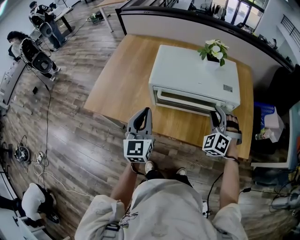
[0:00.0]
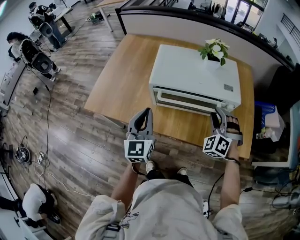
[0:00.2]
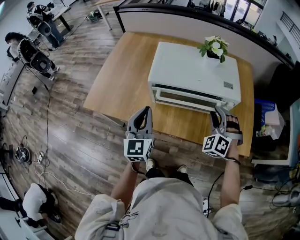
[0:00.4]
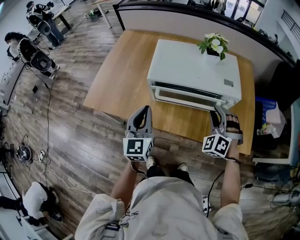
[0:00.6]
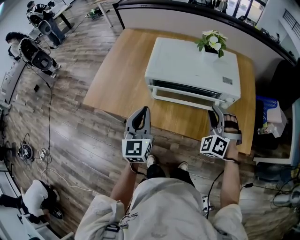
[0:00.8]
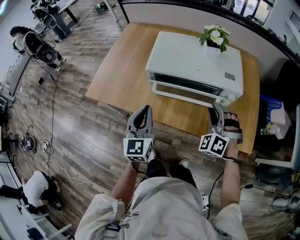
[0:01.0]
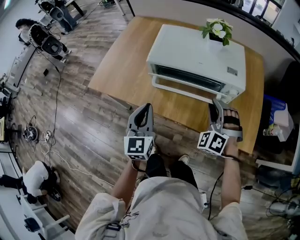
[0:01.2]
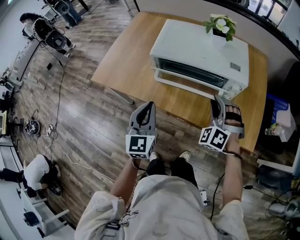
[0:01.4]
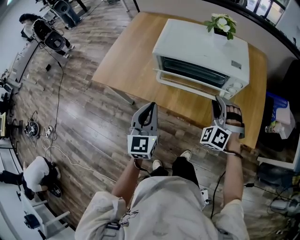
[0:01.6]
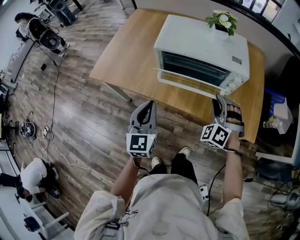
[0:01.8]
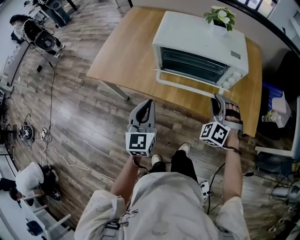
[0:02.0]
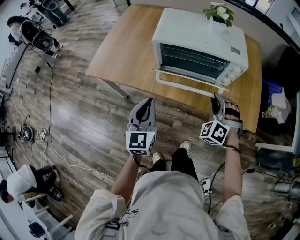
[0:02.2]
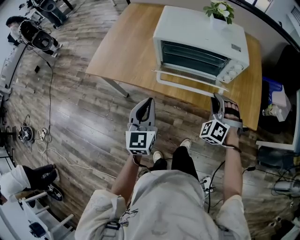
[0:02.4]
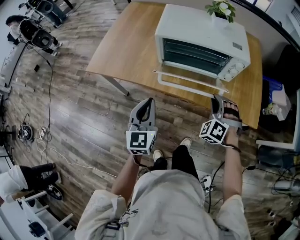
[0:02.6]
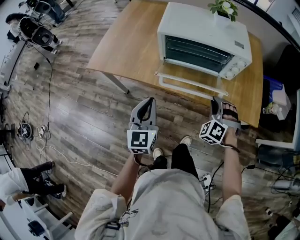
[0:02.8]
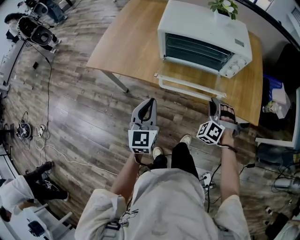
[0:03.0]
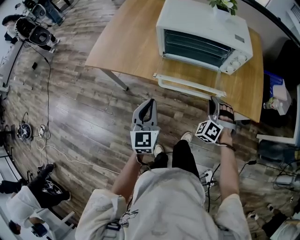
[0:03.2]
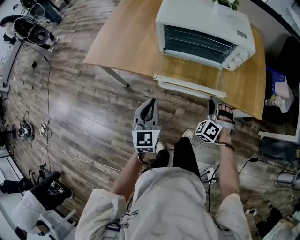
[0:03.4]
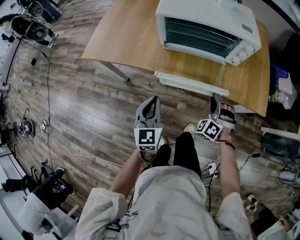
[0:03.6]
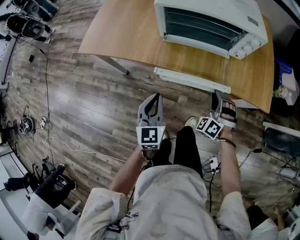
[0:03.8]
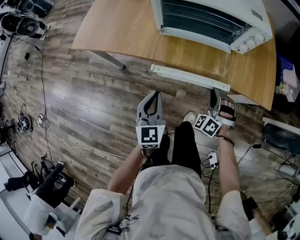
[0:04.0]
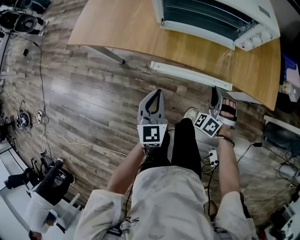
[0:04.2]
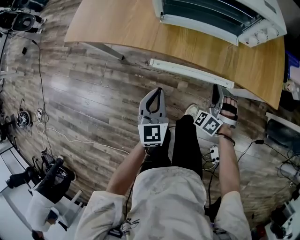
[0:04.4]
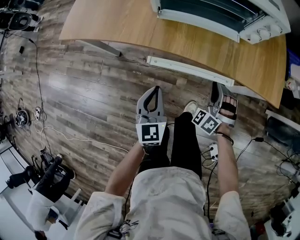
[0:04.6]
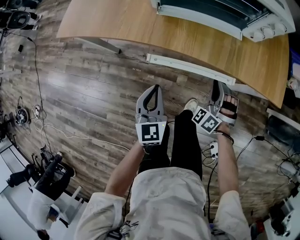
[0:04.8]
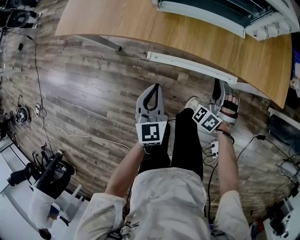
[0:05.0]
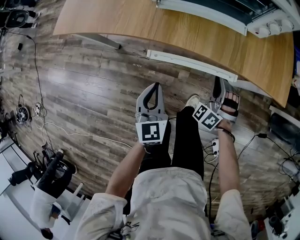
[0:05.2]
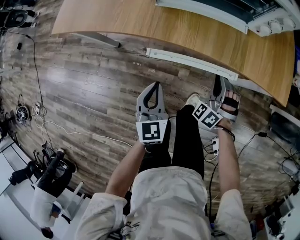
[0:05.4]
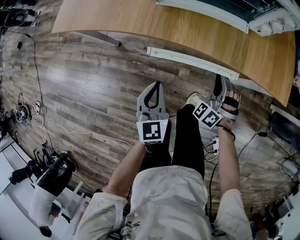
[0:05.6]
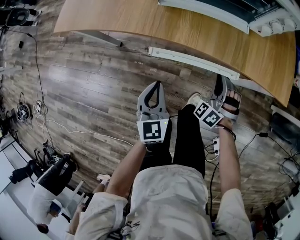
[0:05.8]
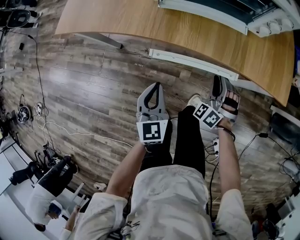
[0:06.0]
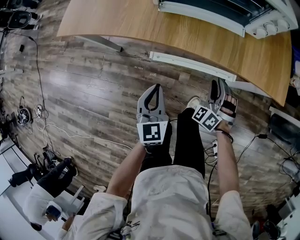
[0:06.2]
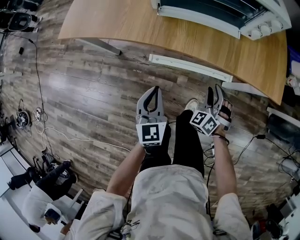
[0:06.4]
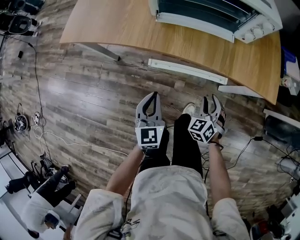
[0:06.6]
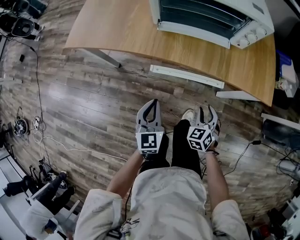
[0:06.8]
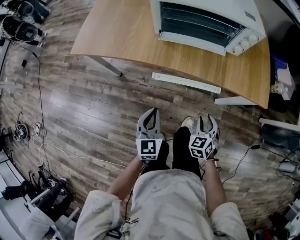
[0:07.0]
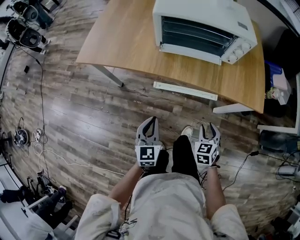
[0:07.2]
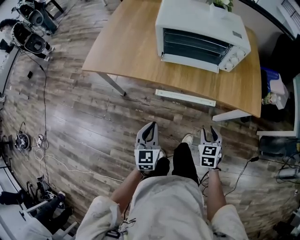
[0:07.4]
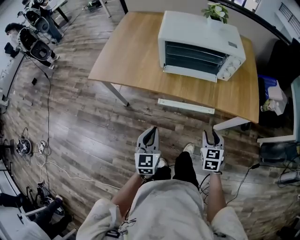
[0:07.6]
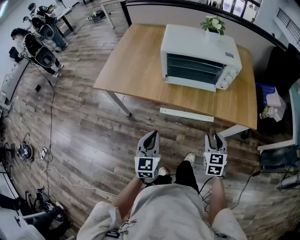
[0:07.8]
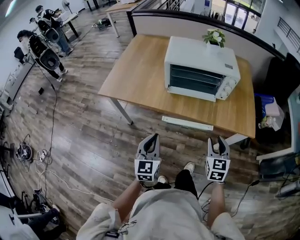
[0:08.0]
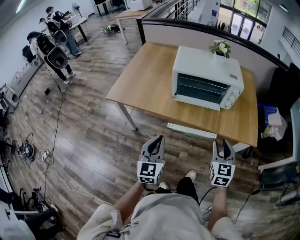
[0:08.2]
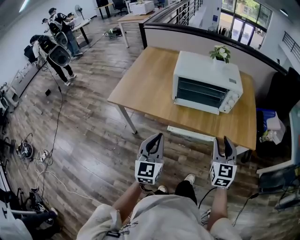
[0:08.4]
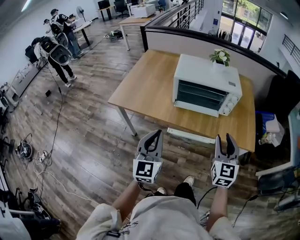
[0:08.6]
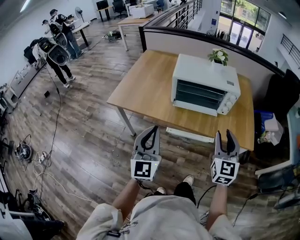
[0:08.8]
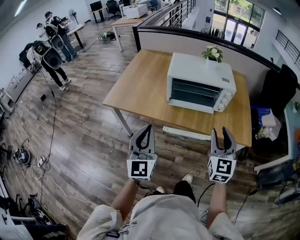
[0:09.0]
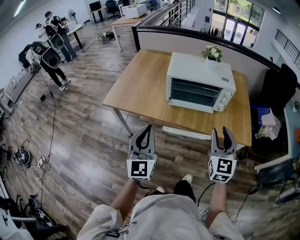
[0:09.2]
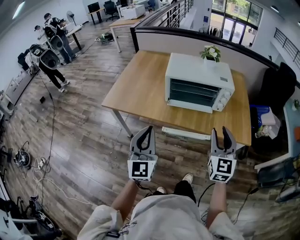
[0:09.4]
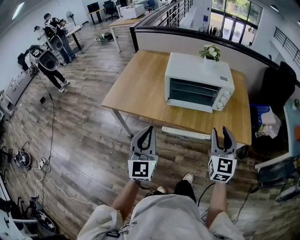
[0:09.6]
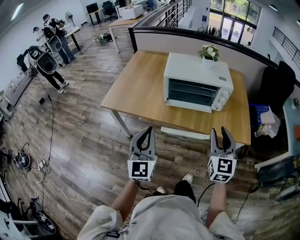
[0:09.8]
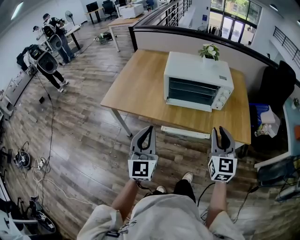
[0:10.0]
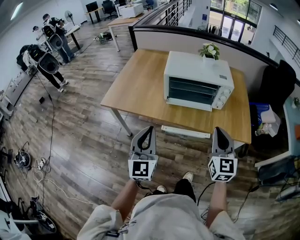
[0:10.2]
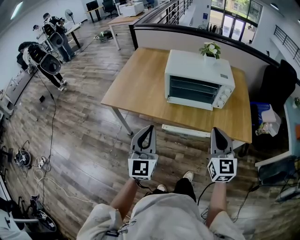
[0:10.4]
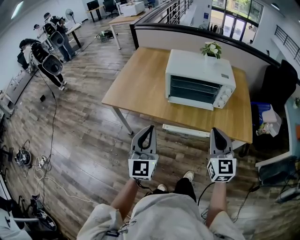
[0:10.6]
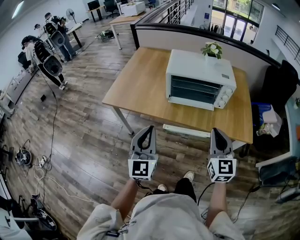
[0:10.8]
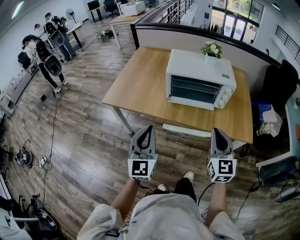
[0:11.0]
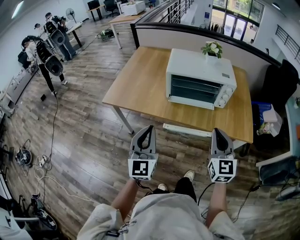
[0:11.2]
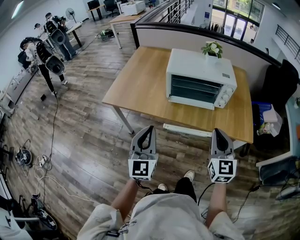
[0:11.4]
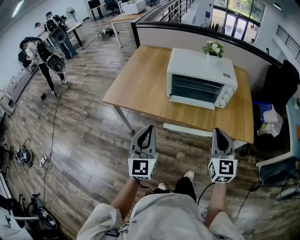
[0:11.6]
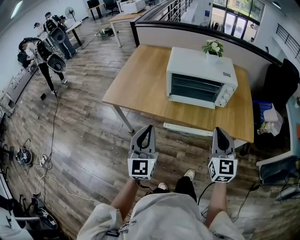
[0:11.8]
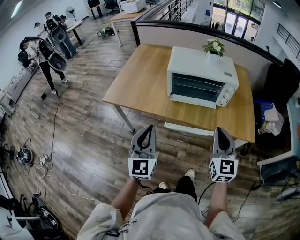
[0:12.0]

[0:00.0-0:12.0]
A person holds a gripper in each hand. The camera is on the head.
0:00.0 to 0:01.6: The two grippers go some 10 cm backward.
0:01.6 to 0:03.0: The right gripper is displaced downward and backward by about 15 cm. Meanwhile the left gripper goes some 10 cm backward and downward.
0:03.0 to 0:04.4: Both grippers move downward, approximately 10 cm.
0:04.4 to 0:06.0: The grippers move only a little.
0:06.0 to 0:07.6: The right gripper heads upward and backward, covering some 15 cm, and twists approximately 50 degrees clockwise, seen from behind. Meanwhile the left gripper heads upward, covering some 10 cm.
0:07.6 to 0:09.0: The grippers both shift upward by about 25 cm. The right gripper angles its fingers upward, by some 30 degrees. The left gripper turns by roughly 30 degrees.
0:09.0 to 0:10.4: The right gripper closes its fingers.
0:10.4 to 0:12.0: There are only small adjustments of the grippers.

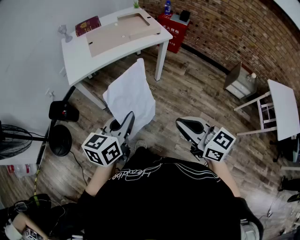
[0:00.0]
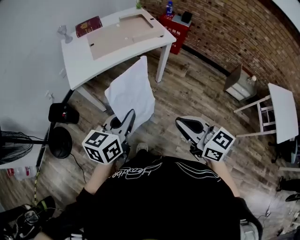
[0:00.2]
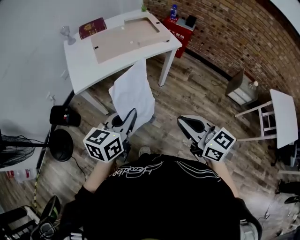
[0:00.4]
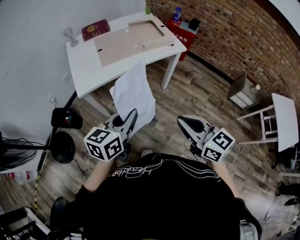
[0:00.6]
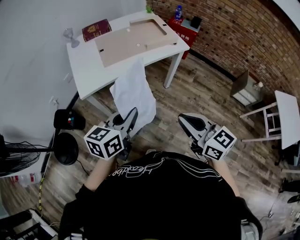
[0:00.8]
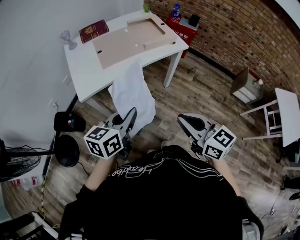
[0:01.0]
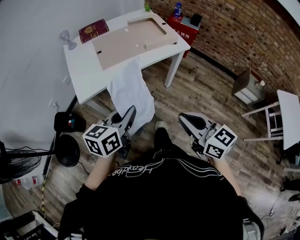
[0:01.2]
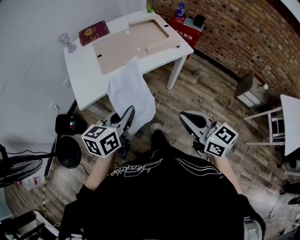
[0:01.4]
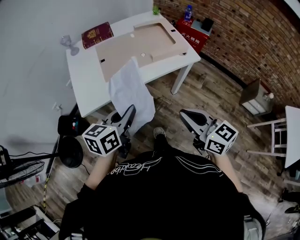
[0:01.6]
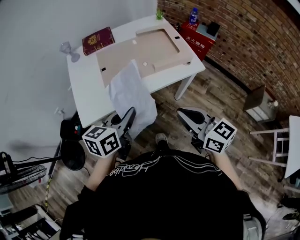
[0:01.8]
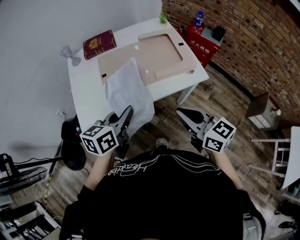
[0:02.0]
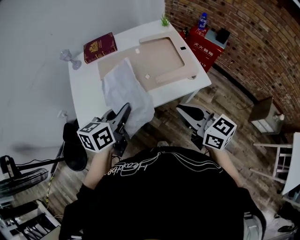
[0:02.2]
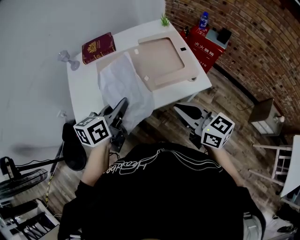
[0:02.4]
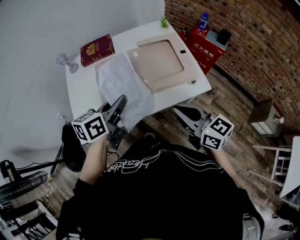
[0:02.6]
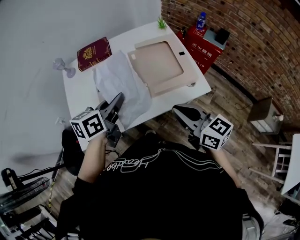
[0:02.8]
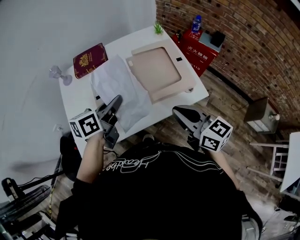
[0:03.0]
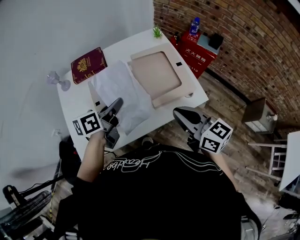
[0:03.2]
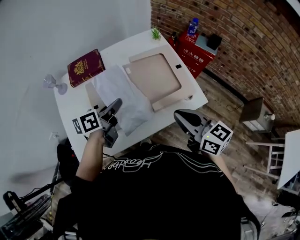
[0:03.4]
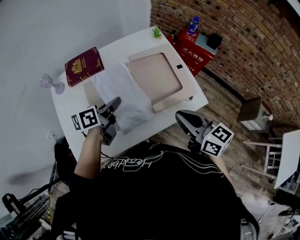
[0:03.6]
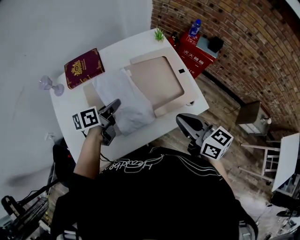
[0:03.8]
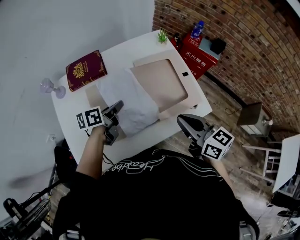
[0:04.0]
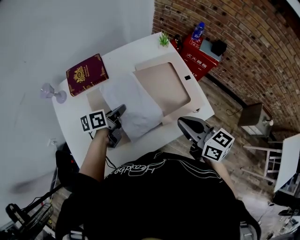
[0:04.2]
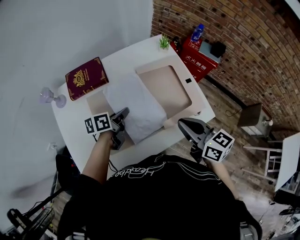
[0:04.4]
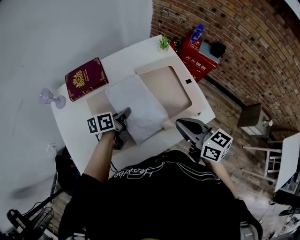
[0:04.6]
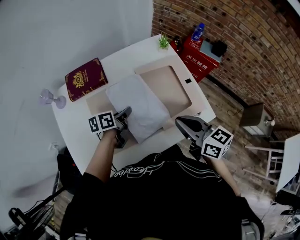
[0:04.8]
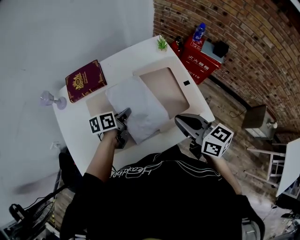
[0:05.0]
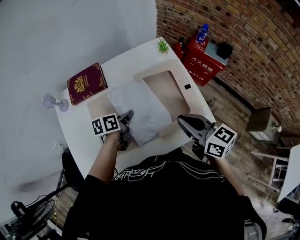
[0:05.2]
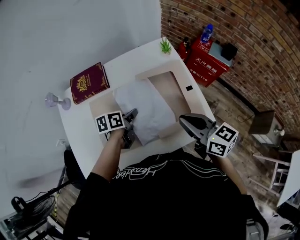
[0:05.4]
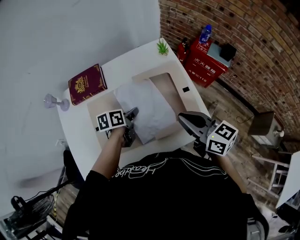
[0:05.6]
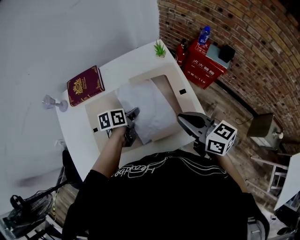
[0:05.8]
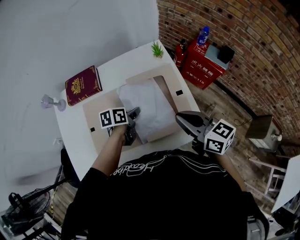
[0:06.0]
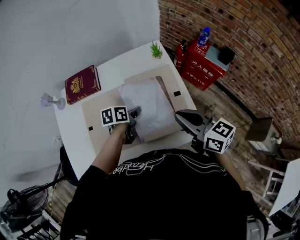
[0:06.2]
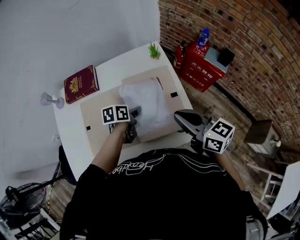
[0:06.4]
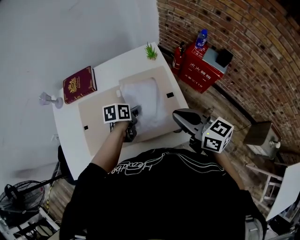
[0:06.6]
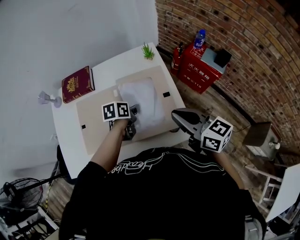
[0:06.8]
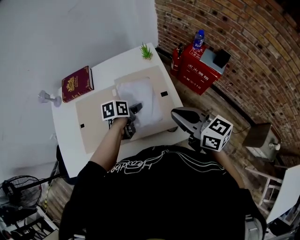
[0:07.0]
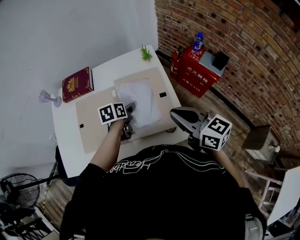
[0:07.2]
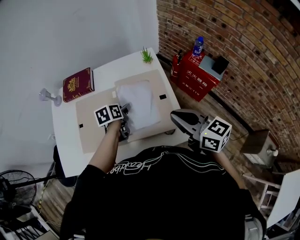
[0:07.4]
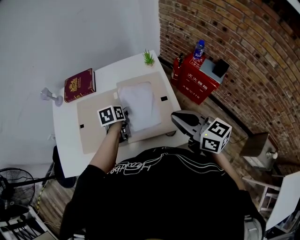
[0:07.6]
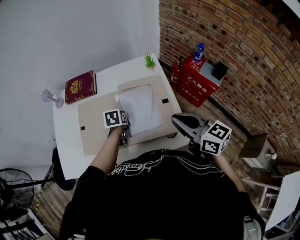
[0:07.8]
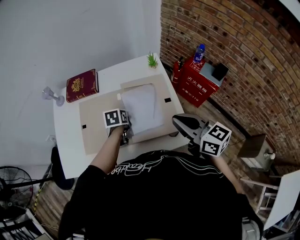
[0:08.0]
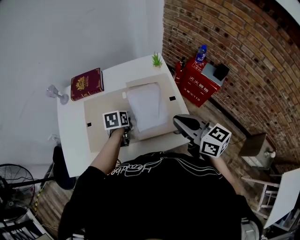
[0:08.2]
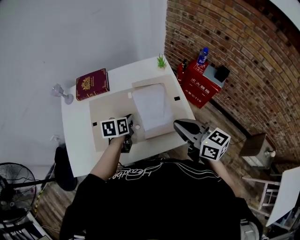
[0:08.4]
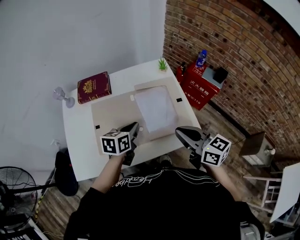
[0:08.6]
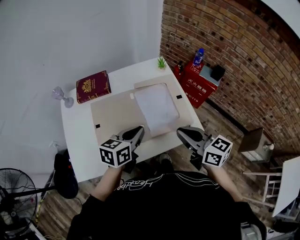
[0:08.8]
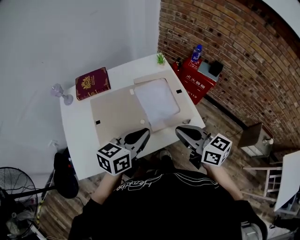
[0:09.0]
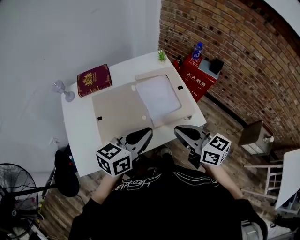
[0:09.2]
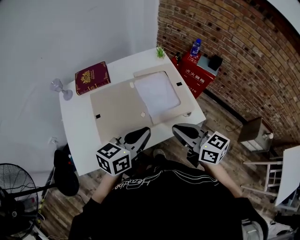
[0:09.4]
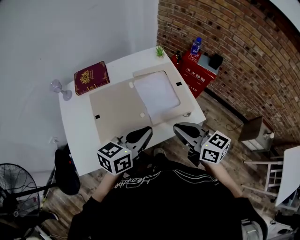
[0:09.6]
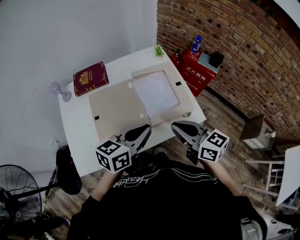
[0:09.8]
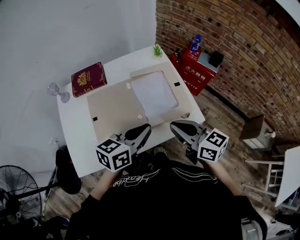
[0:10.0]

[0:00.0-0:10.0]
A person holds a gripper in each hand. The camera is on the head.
0:00.0 to 0:01.4: The left gripper shifts some 20 cm forward and to the left; the right gripper moves forward, some 20 cm.
0:01.4 to 0:02.8: Both grippers move forward, roughly 30 cm.
0:02.8 to 0:04.2: The right gripper heads forward, covering roughly 10 cm. Meanwhile the left gripper moves forward and downward, approximately 20 cm, and rotates approximately 20 degrees.
0:04.2 to 0:05.8: The right gripper shifts about 10 cm forward and to the right. Meanwhile the left gripper heads to the right, covering approximately 10 cm.
0:05.8 to 0:07.2: Both grippers travel together to the right, approximately 5 cm. The left gripper opens.
0:07.2 to 0:08.6: The left gripper shifts roughly 15 cm upward, backward and to the left, swivels roughly 20 degrees, and closes its fingers. The right gripper goes about 10 cm to the left and backward.
0:08.6 to 0:10.0: The left gripper goes about 15 cm upward, backward and to the right, and swivels about 20 degrees.

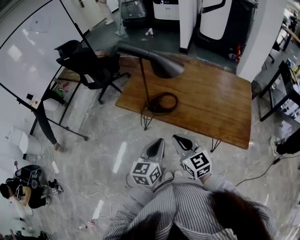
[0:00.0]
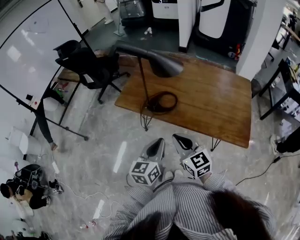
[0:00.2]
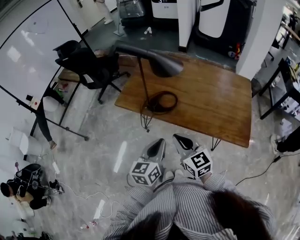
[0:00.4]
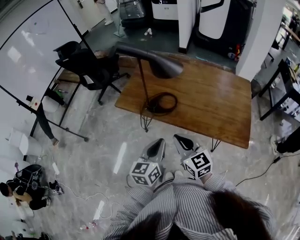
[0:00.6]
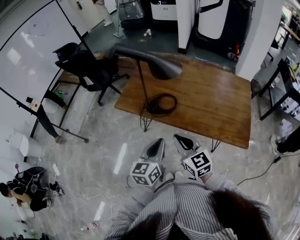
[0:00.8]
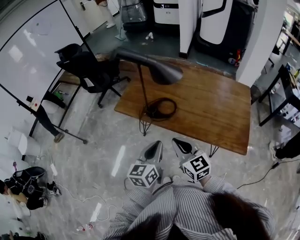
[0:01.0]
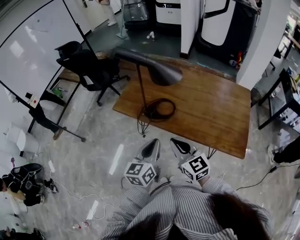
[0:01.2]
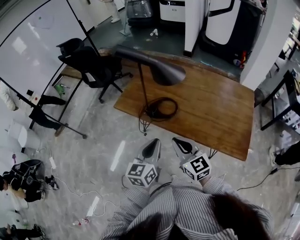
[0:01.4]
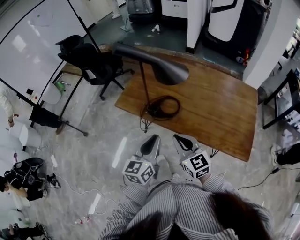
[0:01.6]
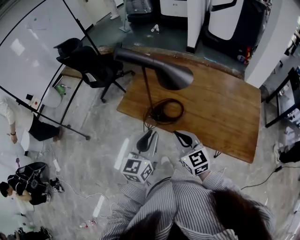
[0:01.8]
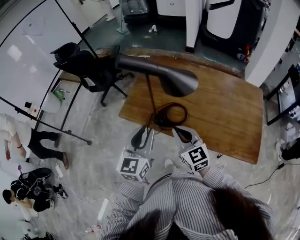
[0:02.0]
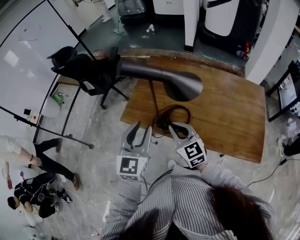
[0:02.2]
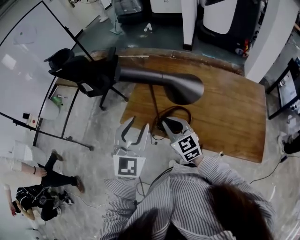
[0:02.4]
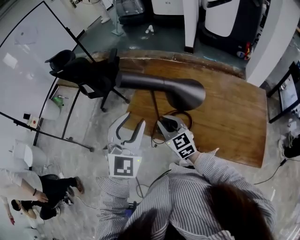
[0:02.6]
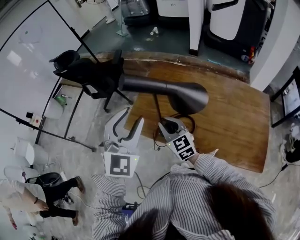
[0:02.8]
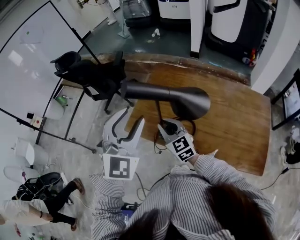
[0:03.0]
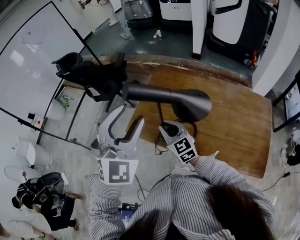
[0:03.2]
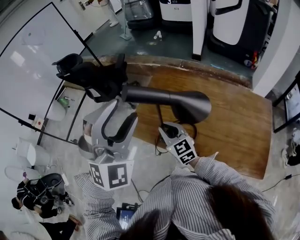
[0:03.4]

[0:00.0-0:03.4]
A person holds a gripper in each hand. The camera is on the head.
0:00.0 to 0:01.6: Both grippers travel together forward, some 5 cm.
0:01.6 to 0:03.4: The left gripper shifts about 30 cm upward and forward, rotates around the line of its fingers by approximately 90 degrees, clockwise from behind, and opens its fingers, while the right gripper moves forward and to the left, approximately 25 cm.
